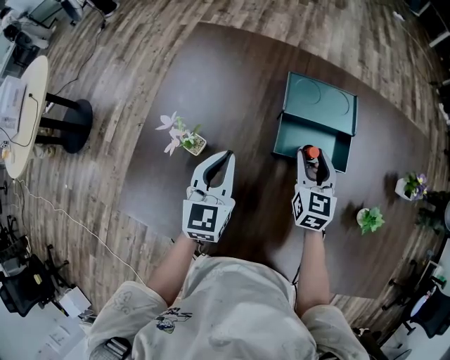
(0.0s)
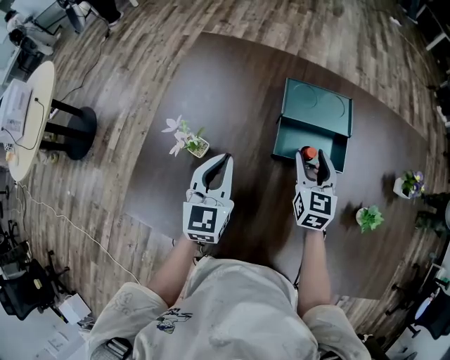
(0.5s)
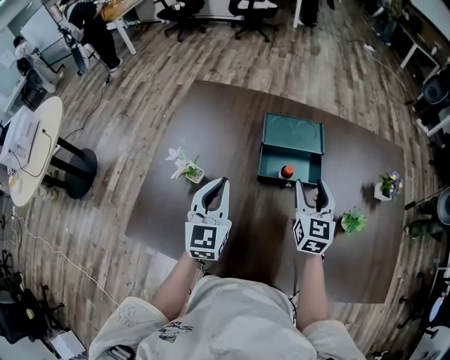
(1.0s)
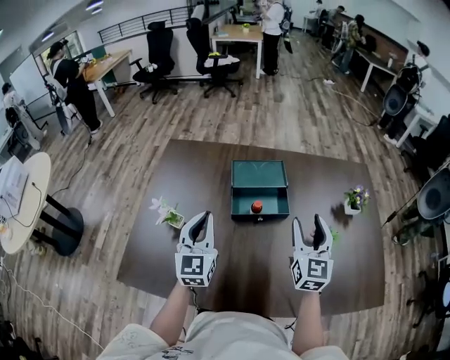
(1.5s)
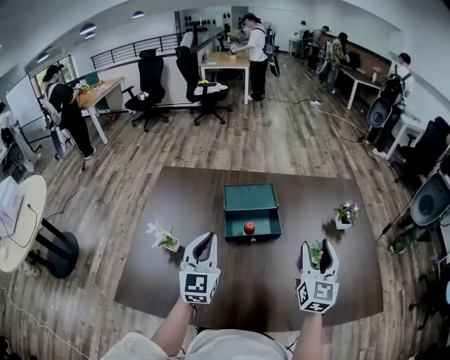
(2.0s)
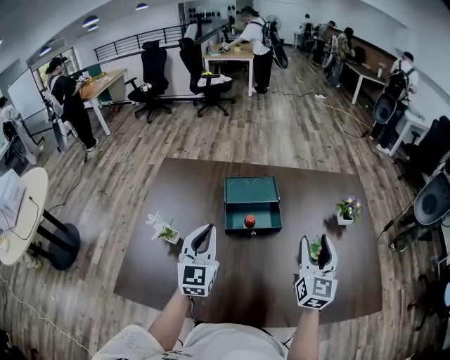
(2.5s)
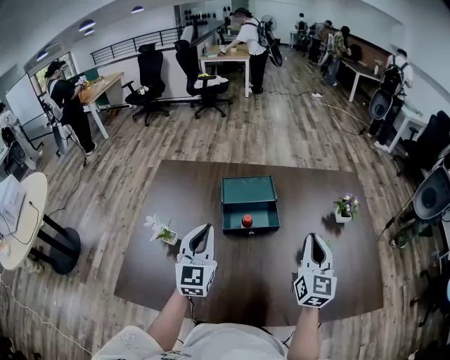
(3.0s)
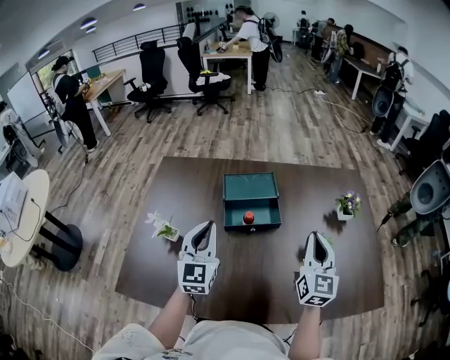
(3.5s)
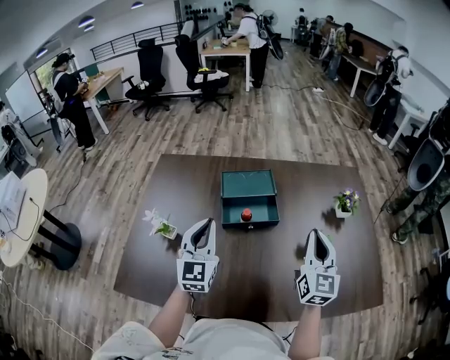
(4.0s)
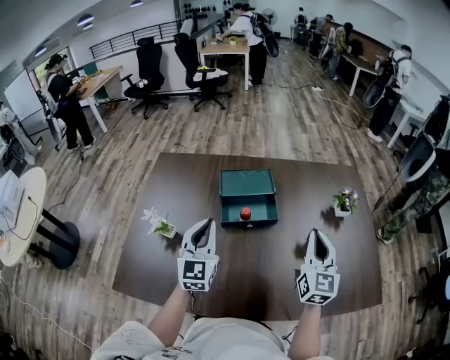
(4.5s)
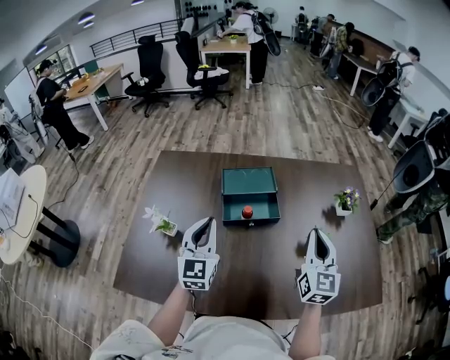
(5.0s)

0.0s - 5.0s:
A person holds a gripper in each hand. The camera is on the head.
0.0s - 2.5s: The right gripper heads upward, to the right and backward, covering roughly 30 cm, and rotates about 30 degrees; the left gripper is displaced upward and to the right by roughly 15 cm, and turns by about 20 degrees.
2.5s - 5.0s: The right gripper closes.

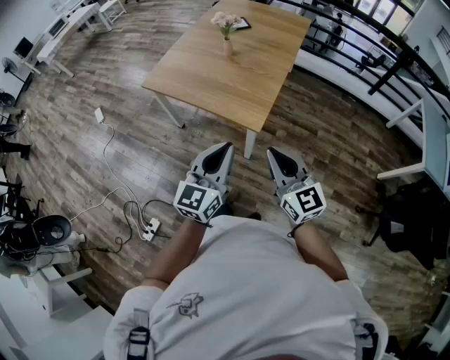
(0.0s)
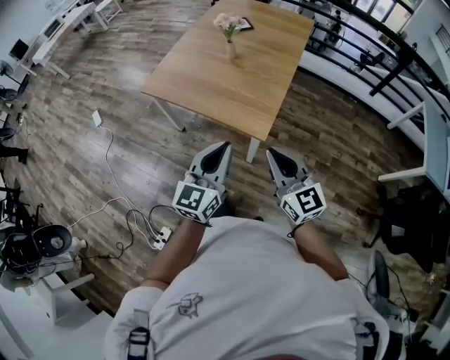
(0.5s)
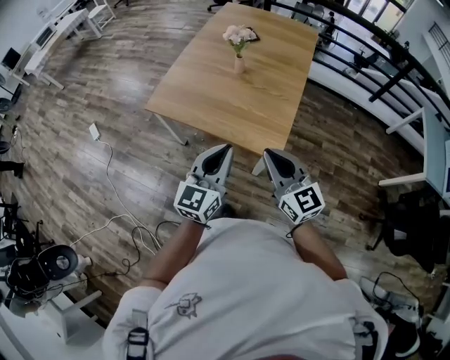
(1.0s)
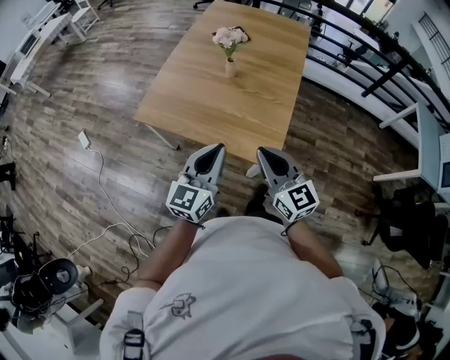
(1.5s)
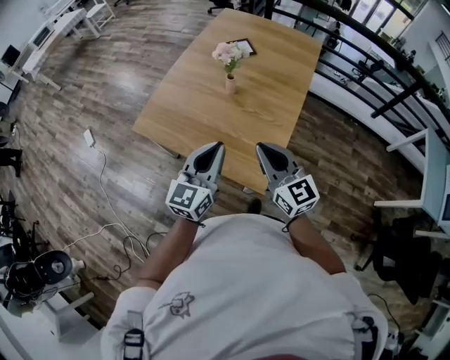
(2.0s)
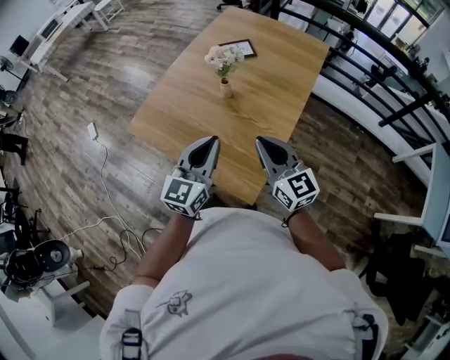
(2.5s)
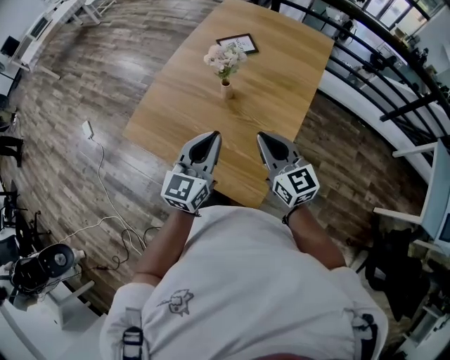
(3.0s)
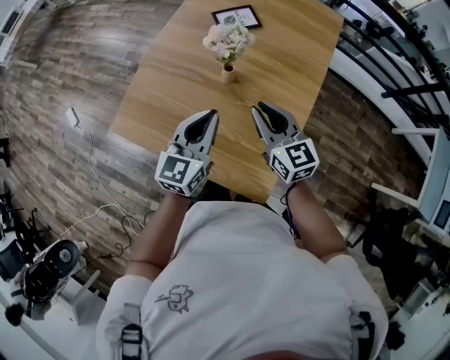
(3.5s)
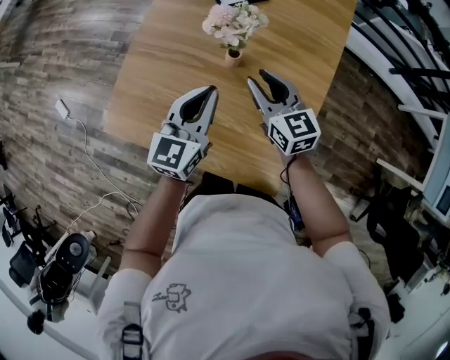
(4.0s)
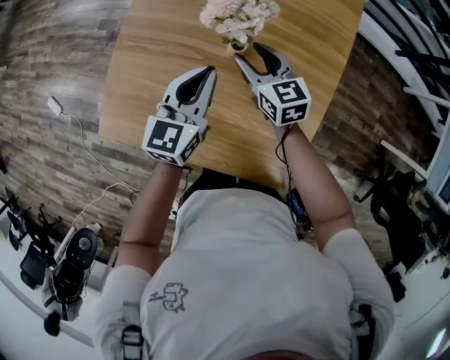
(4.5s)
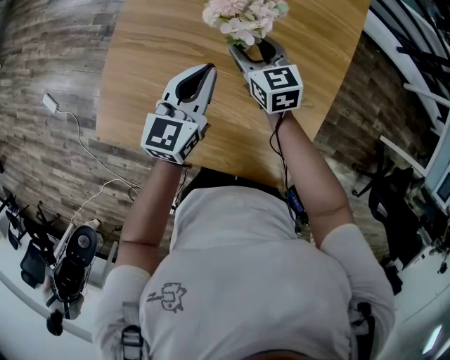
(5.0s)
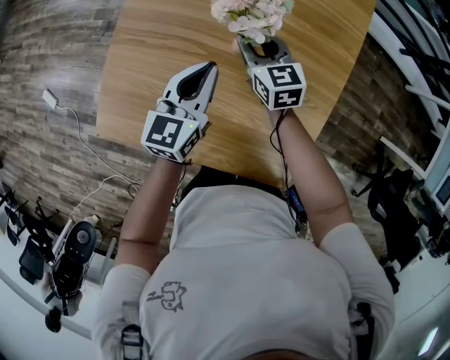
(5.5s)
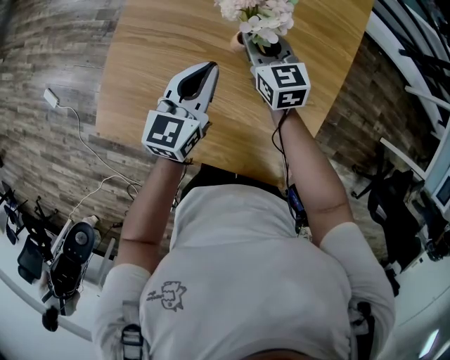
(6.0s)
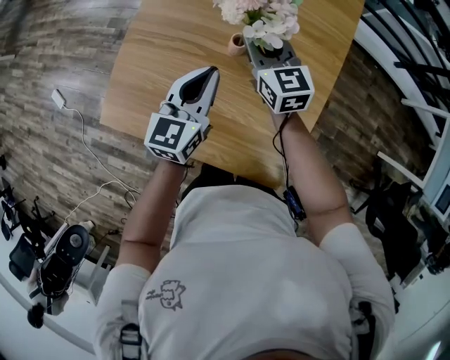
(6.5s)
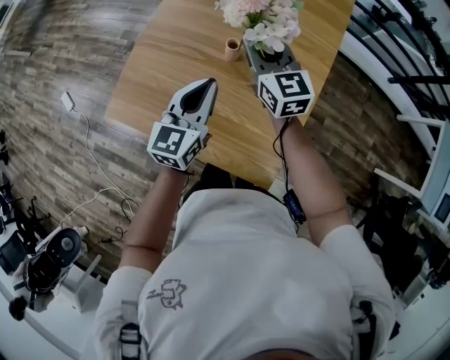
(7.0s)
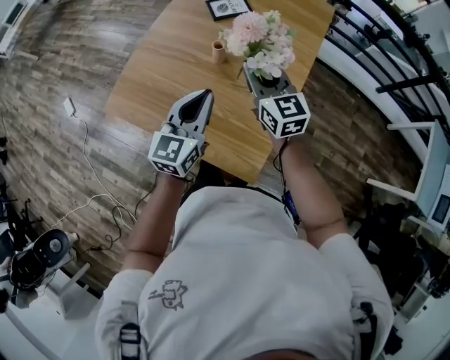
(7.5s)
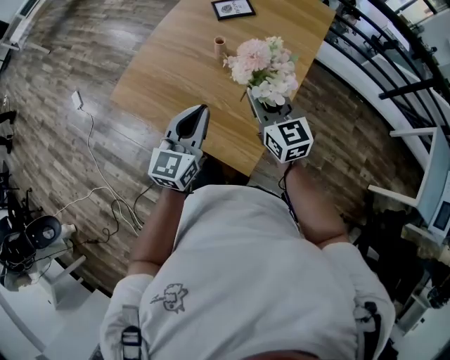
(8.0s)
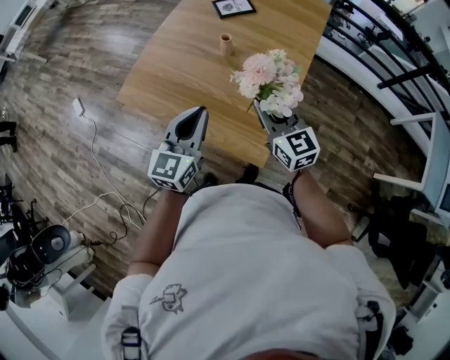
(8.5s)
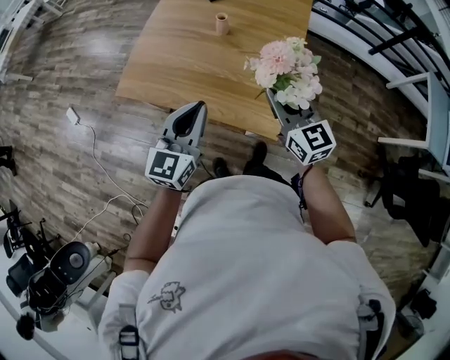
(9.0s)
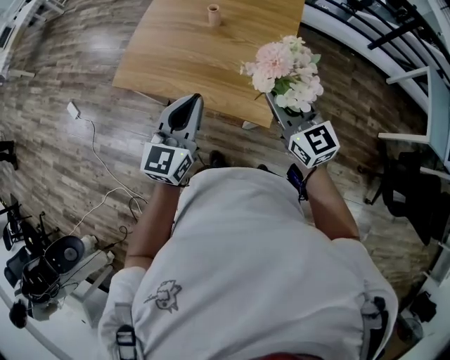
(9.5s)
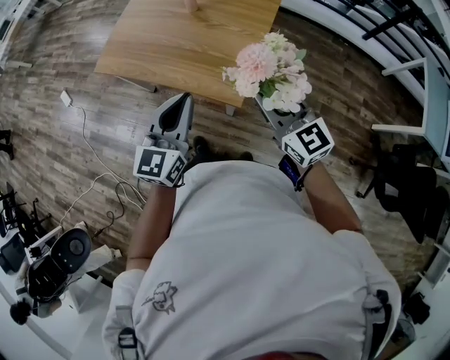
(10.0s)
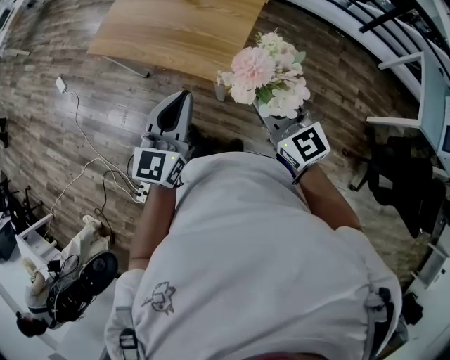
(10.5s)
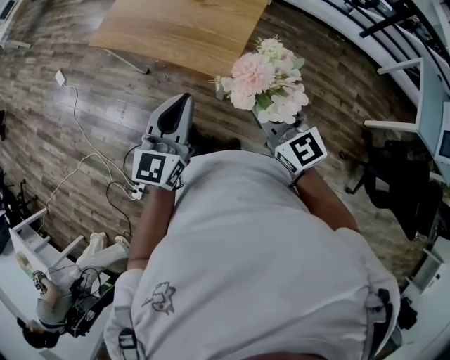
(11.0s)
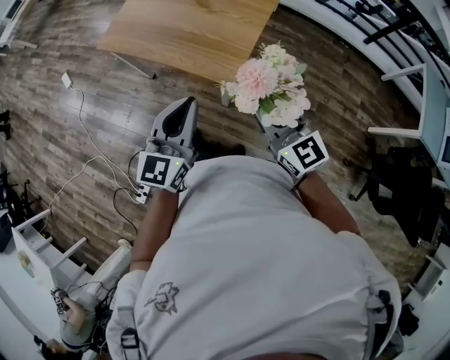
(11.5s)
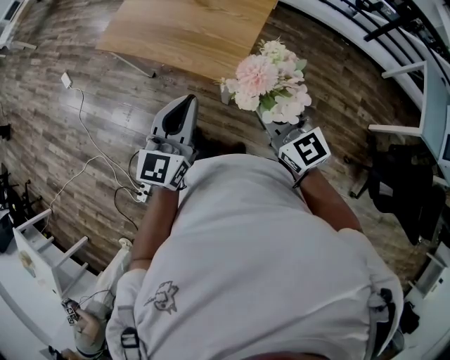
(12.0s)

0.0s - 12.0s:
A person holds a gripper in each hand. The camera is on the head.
0.0s - 2.0s: The two grippers go roughly 30 cm forward.
2.0s - 4.0s: The right gripper travels forward and downward by approximately 35 cm, and opens up. The left gripper moves forward, about 30 cm.
4.0s - 6.0s: The left gripper shifts some 5 cm downward. Meanwhile the right gripper goes about 15 cm forward and downward, and opens, then closes once more.
6.0s - 8.0s: The two grippers go about 30 cm backward and upward. The left gripper rotates approximately 20 degrees, while the right gripper changes its angle by about 20 degrees.
8.0s - 10.0s: Both grippers move backward, some 20 cm.
10.0s - 12.0s: The grippers both shift backward by about 10 cm.

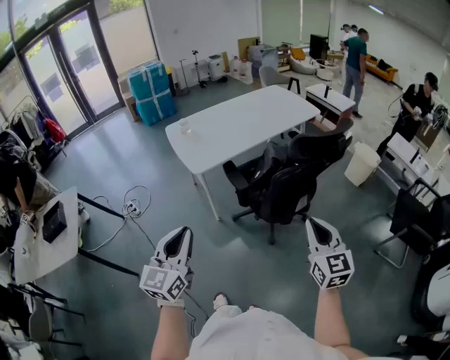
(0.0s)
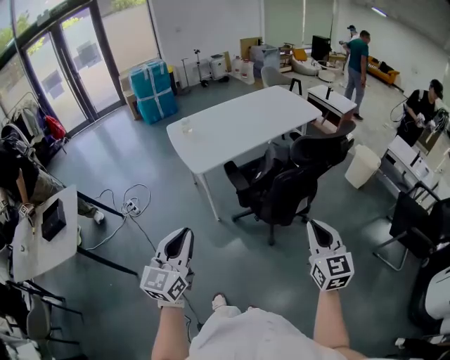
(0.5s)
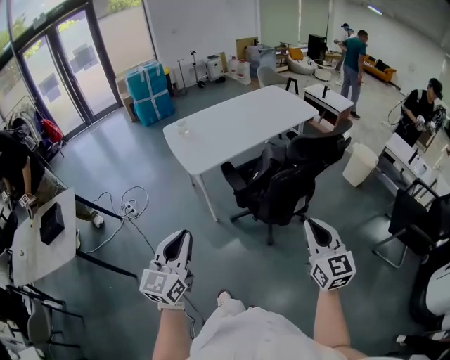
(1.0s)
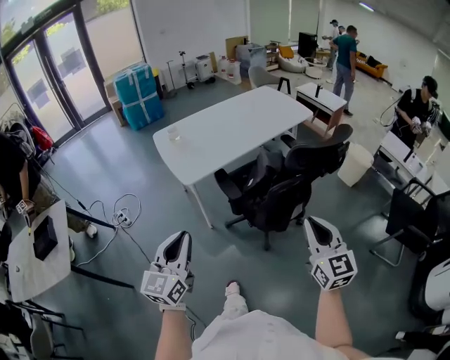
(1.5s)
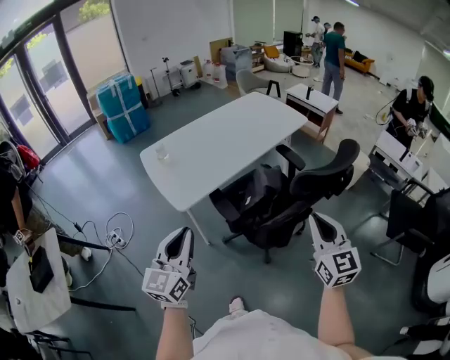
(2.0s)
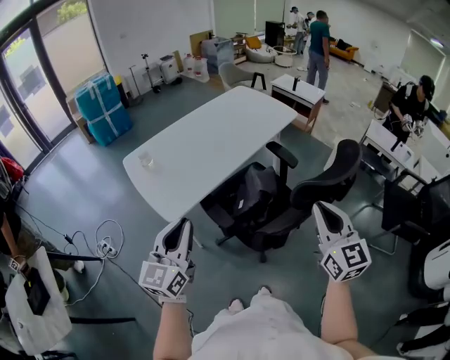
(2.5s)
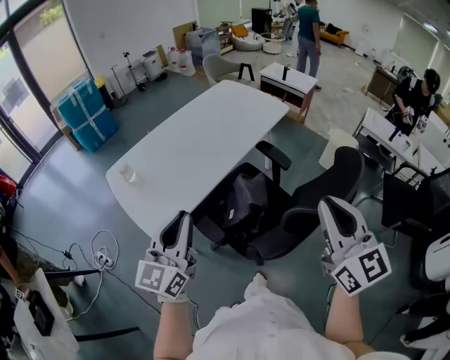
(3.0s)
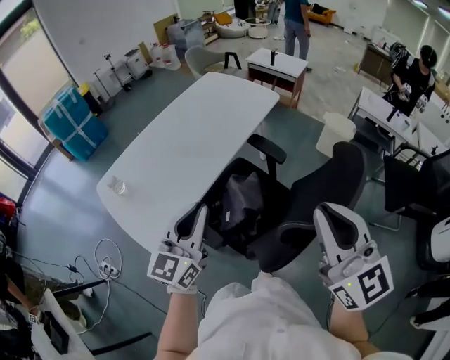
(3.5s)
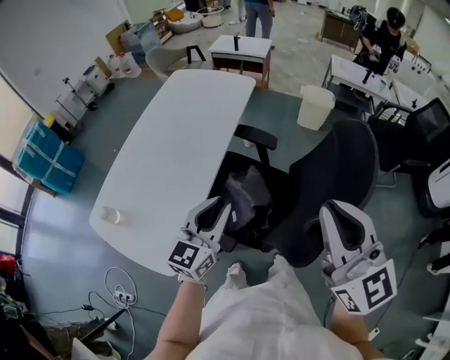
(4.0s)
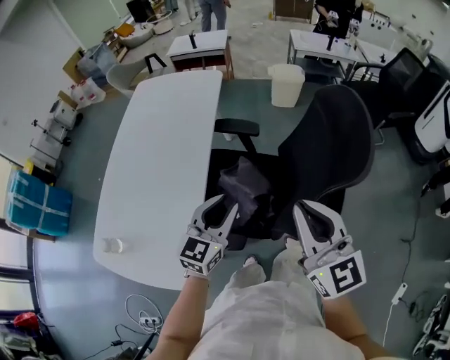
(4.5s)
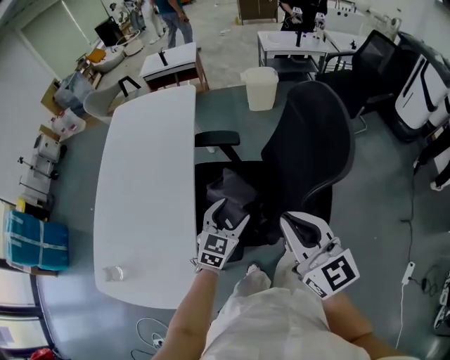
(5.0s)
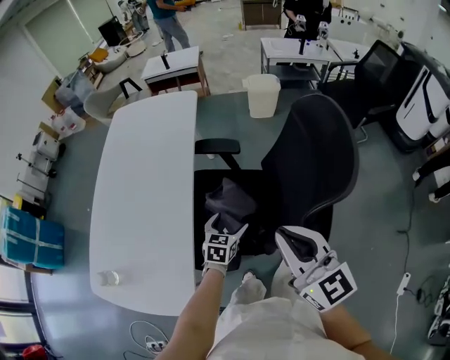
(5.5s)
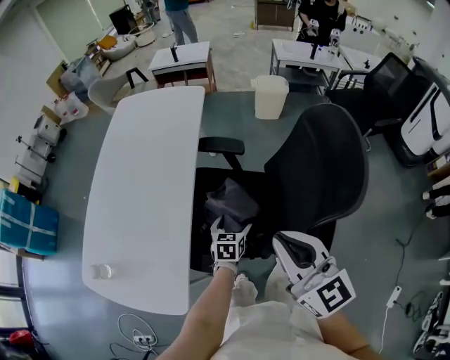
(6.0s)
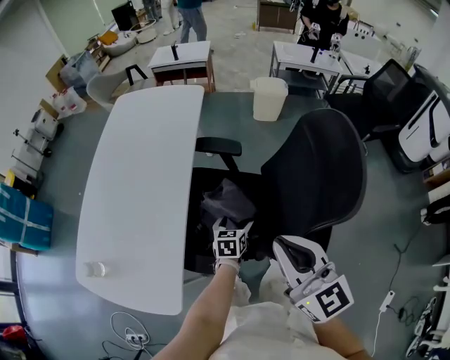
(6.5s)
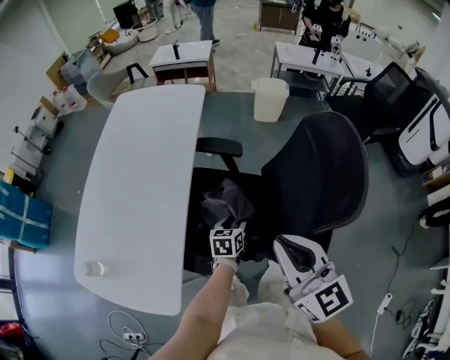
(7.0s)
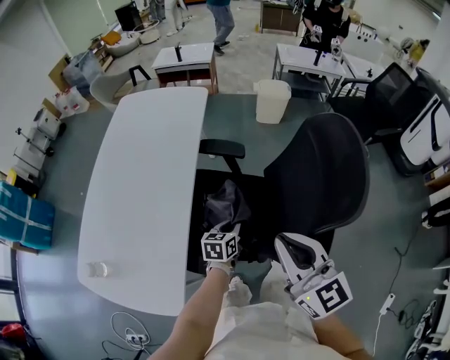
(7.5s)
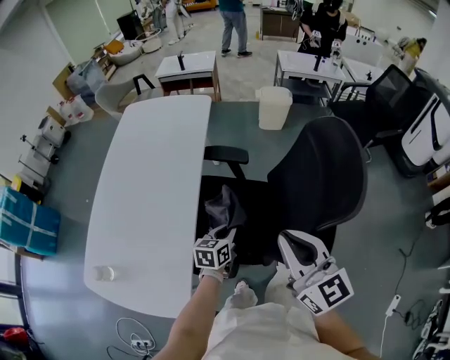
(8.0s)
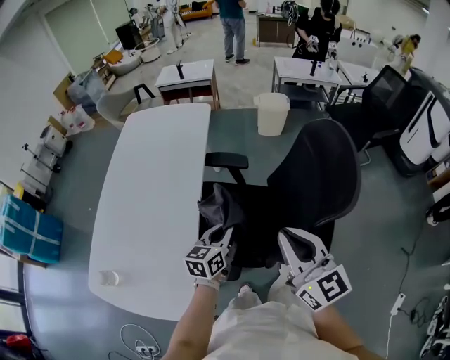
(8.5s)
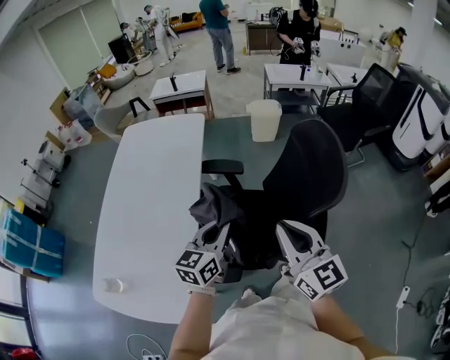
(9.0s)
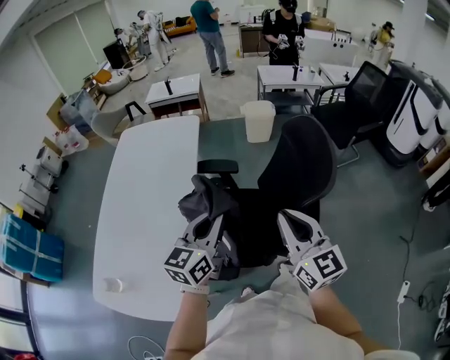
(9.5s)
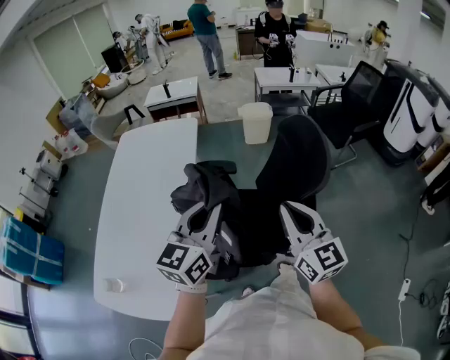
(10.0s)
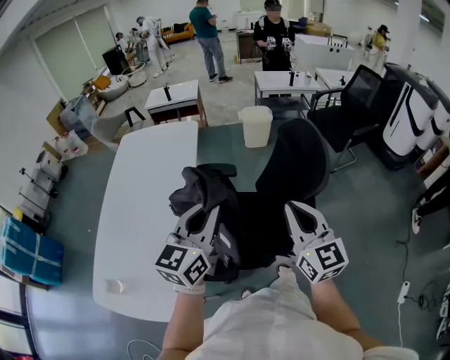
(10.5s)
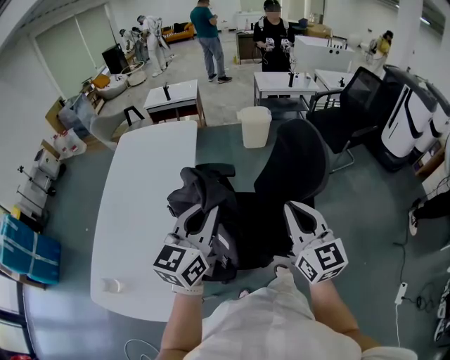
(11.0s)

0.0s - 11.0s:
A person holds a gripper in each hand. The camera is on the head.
0.0s - 2.0s: The two grippers go about 20 cm forward.
2.0s - 3.5s: The left gripper travels forward and to the right by roughly 30 cm, and turns by about 20 degrees, while the right gripper goes roughly 15 cm forward and upward.
3.5s - 5.5s: The right gripper heads downward, covering roughly 15 cm, and swivels roughly 30 degrees. Meanwhile the left gripper is displaced downward by approximately 30 cm, angles its fingers downward, by roughly 40 degrees, and opens its fingers.
5.5s - 7.5s: The left gripper swivels approximately 20 degrees, and closes up.
7.5s - 9.0s: The left gripper heads upward, covering approximately 20 cm, and swivels some 30 degrees.
9.0s - 11.0s: The right gripper shifts by some 5 cm. The left gripper is displaced upward by approximately 15 cm.
